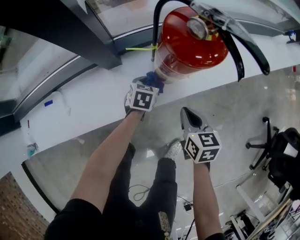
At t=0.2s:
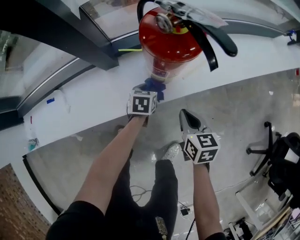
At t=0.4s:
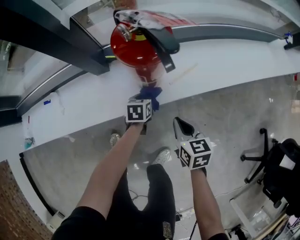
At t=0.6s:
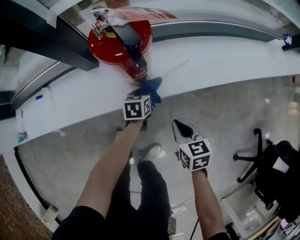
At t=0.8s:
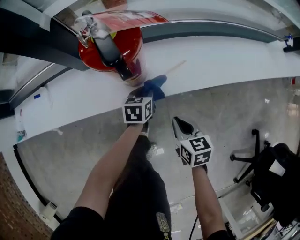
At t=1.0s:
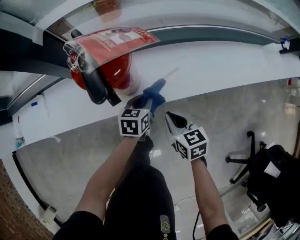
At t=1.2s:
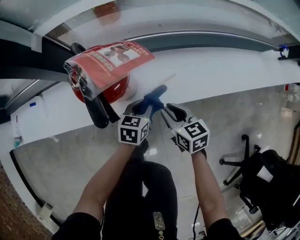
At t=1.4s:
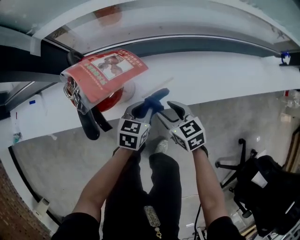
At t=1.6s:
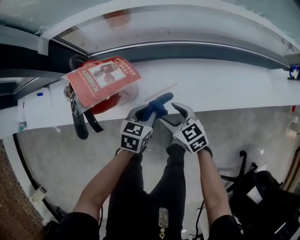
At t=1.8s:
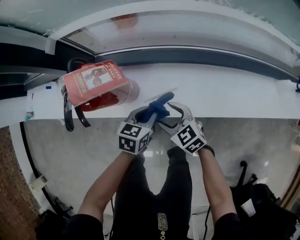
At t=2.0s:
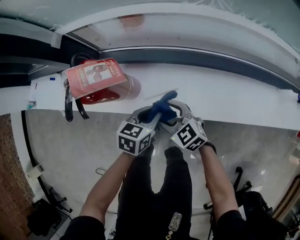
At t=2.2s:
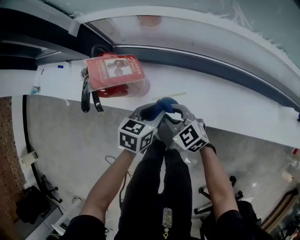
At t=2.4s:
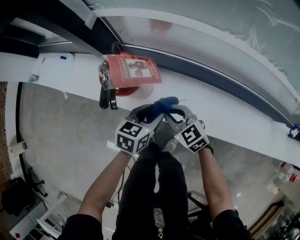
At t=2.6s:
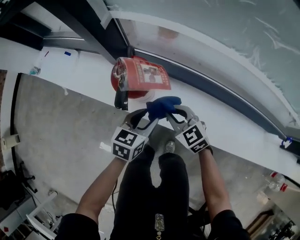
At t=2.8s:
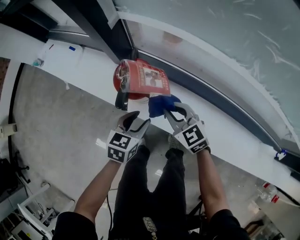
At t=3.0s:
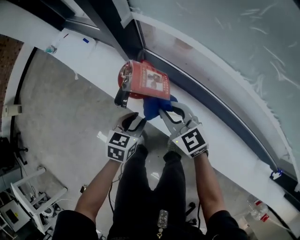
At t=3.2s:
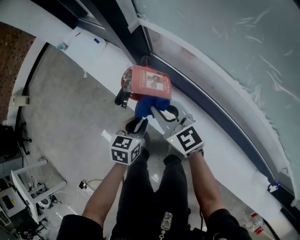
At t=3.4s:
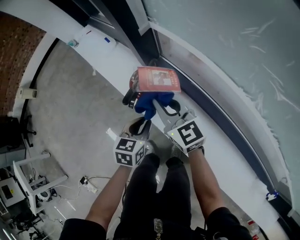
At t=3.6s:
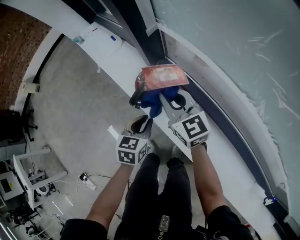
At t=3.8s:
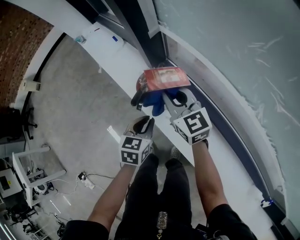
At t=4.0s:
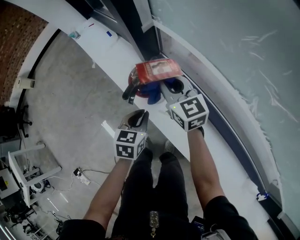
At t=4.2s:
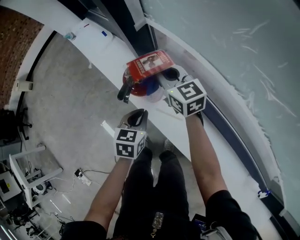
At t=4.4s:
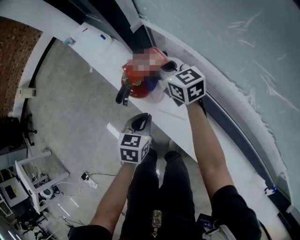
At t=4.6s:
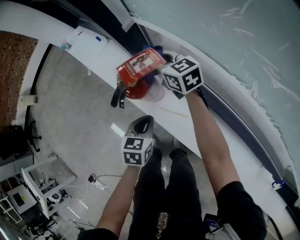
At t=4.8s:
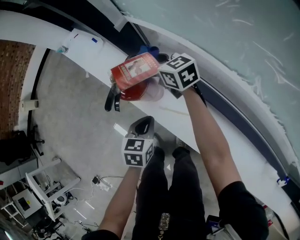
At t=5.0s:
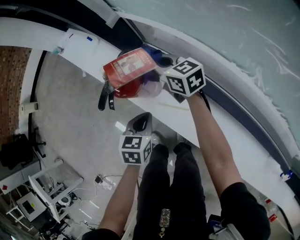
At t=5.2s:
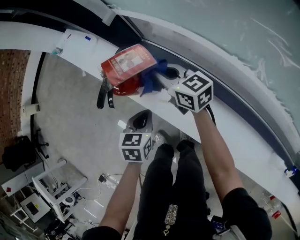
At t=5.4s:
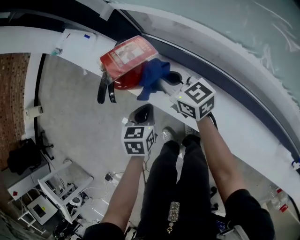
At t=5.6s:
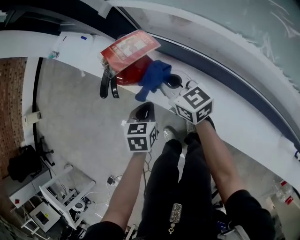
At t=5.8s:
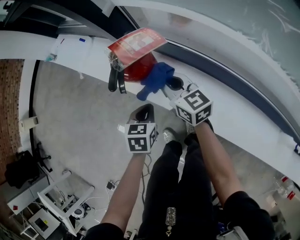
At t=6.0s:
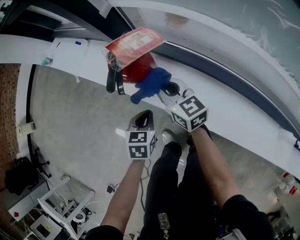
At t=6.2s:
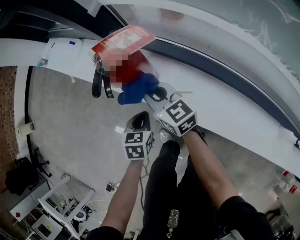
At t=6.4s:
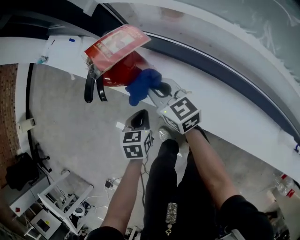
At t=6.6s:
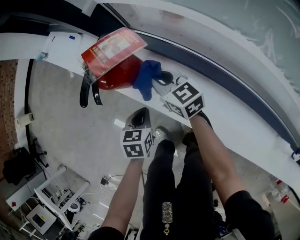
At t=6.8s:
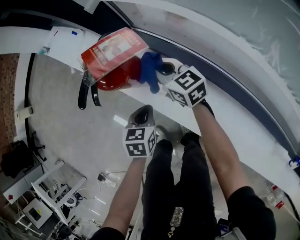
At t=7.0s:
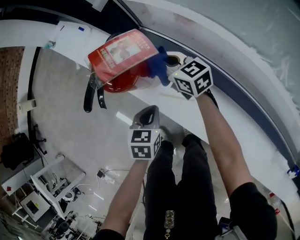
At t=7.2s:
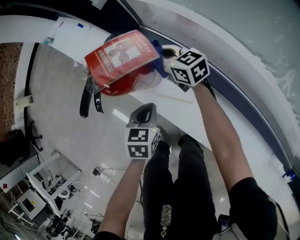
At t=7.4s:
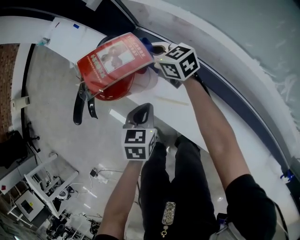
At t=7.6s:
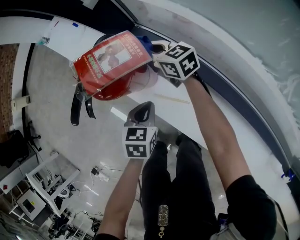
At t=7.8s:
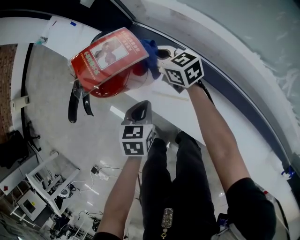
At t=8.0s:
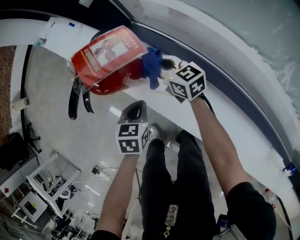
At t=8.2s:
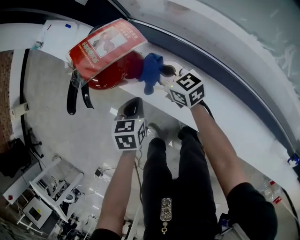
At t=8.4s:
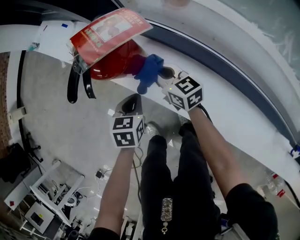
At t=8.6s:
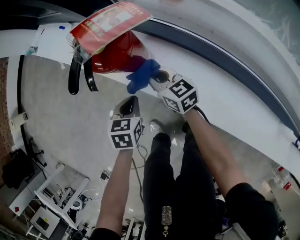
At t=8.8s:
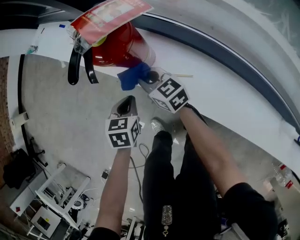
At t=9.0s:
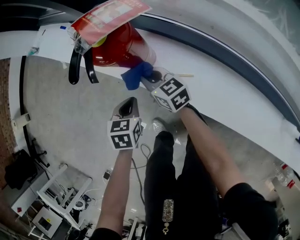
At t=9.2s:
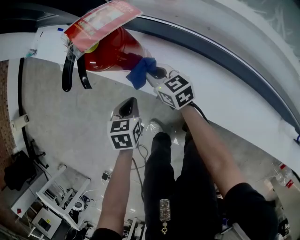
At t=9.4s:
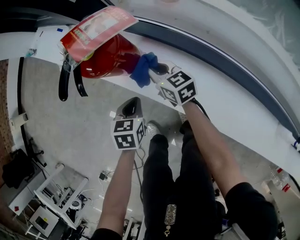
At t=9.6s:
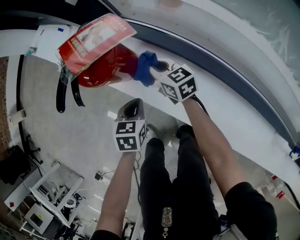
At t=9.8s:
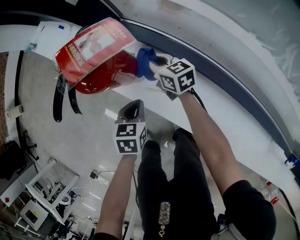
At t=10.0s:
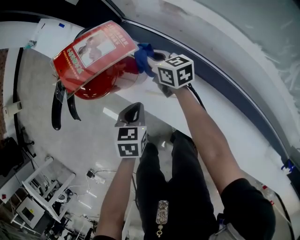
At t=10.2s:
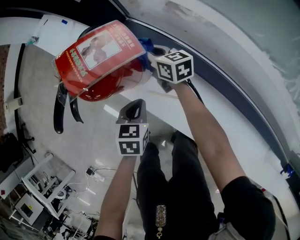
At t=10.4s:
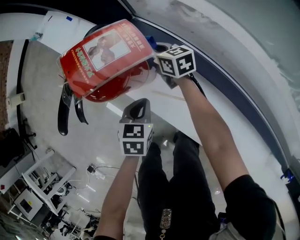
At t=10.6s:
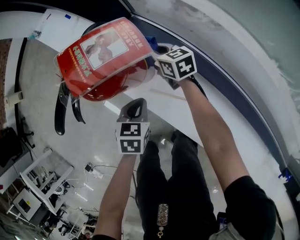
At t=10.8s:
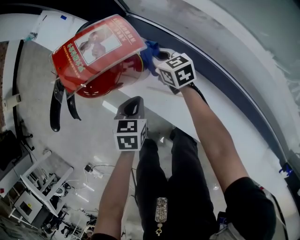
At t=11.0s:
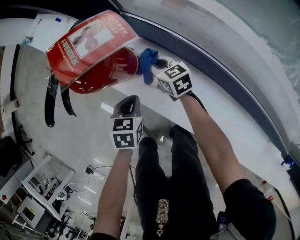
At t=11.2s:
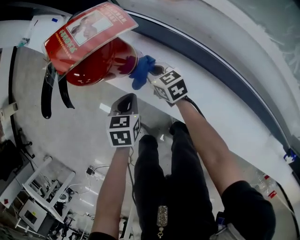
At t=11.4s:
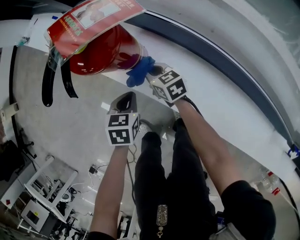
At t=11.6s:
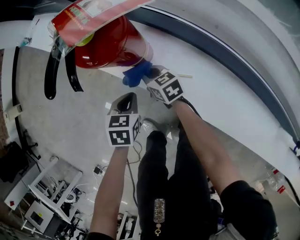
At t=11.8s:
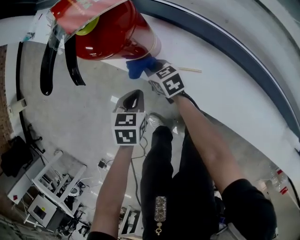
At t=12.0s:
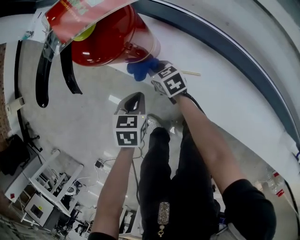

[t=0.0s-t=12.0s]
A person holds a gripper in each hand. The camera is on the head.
t=0.0s to t=1.6s: The left gripper shifts about 25 cm to the right and upward. The right gripper is displaced to the right and forward by roughly 20 cm, changes its angle by about 50 degrees, and opens up.
t=1.6s to t=3.0s: The right gripper travels upward by some 20 cm, swivels approximately 50 degrees, and closes, while the left gripper heads upward, covering about 10 cm, and turns by approximately 40 degrees.
t=3.0s to t=4.4s: The right gripper is displaced forward by approximately 15 cm. The left gripper goes some 5 cm upward, and closes its fingers.
t=4.4s to t=6.0s: The left gripper travels downward and to the left by some 10 cm; the right gripper heads backward and downward, covering approximately 15 cm.
t=6.0s to t=7.6s: The left gripper is displaced to the right by some 10 cm. Meanwhile the right gripper travels forward and downward by about 20 cm, and swivels some 20 degrees.
t=7.6s to t=9.0s: The left gripper is displaced to the left by approximately 10 cm. The right gripper moves backward and to the left, roughly 20 cm.
t=9.0s to t=10.4s: The right gripper shifts approximately 20 cm forward and to the right, while the left gripper moves to the right, some 10 cm.
t=10.4s to t=12.0s: The left gripper shifts about 10 cm to the left and backward, while the right gripper is displaced backward, to the left and downward by about 20 cm.

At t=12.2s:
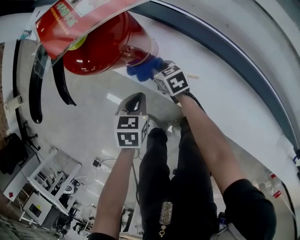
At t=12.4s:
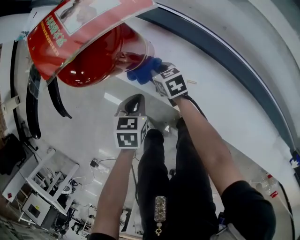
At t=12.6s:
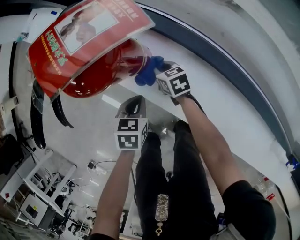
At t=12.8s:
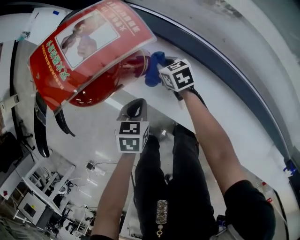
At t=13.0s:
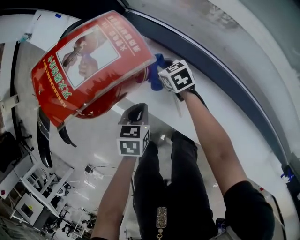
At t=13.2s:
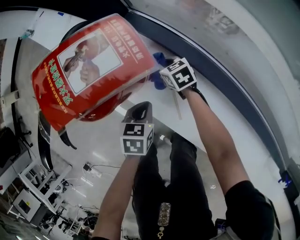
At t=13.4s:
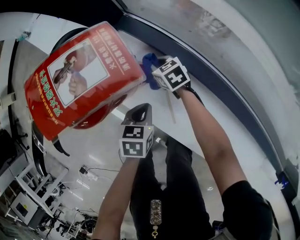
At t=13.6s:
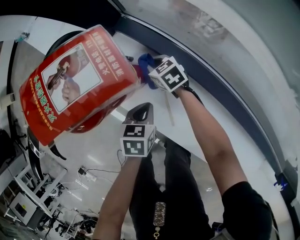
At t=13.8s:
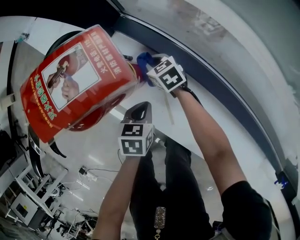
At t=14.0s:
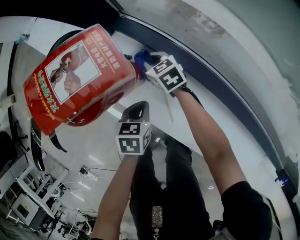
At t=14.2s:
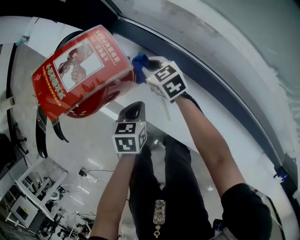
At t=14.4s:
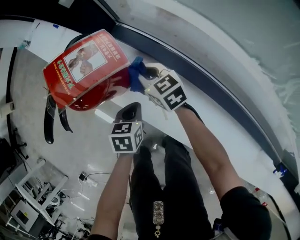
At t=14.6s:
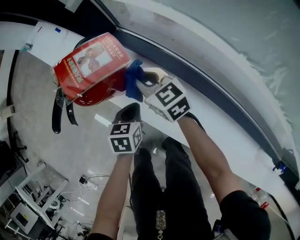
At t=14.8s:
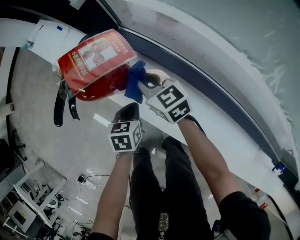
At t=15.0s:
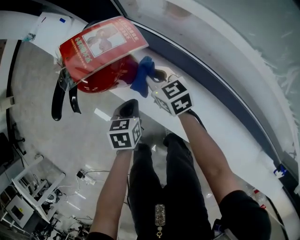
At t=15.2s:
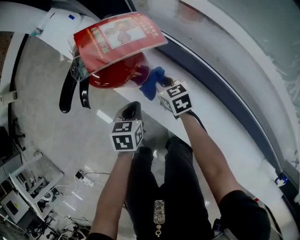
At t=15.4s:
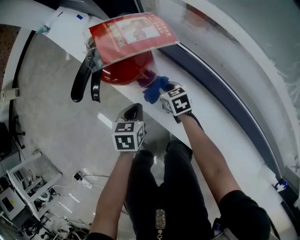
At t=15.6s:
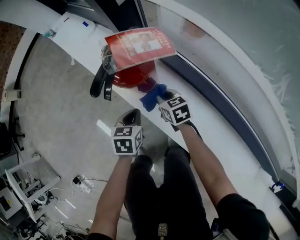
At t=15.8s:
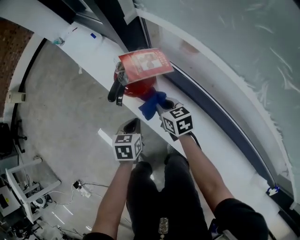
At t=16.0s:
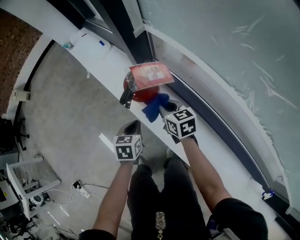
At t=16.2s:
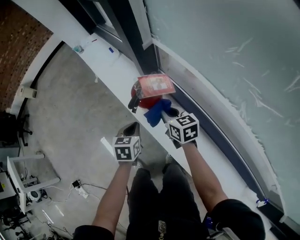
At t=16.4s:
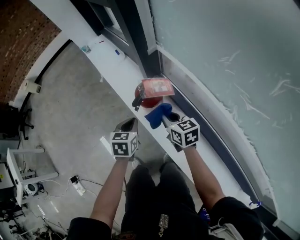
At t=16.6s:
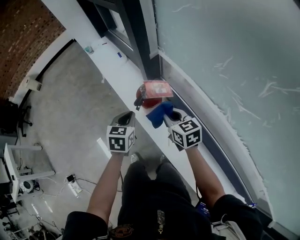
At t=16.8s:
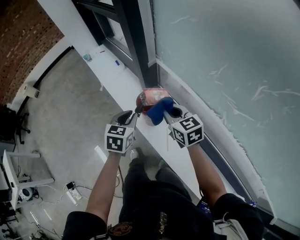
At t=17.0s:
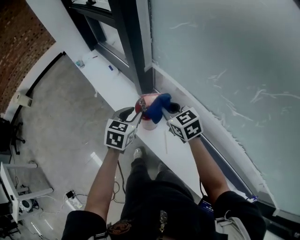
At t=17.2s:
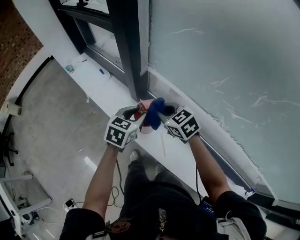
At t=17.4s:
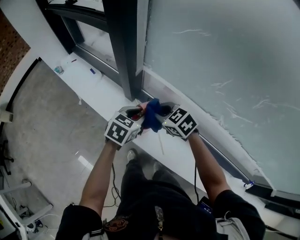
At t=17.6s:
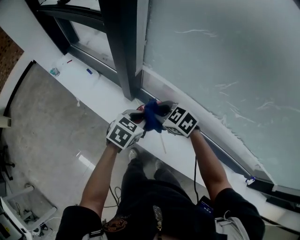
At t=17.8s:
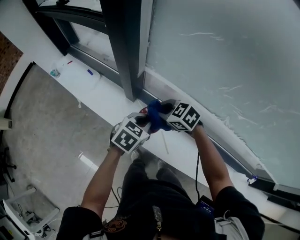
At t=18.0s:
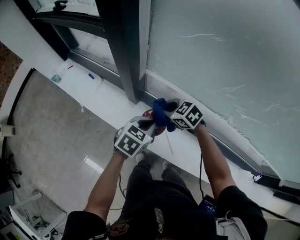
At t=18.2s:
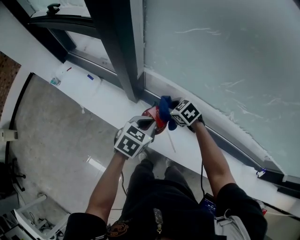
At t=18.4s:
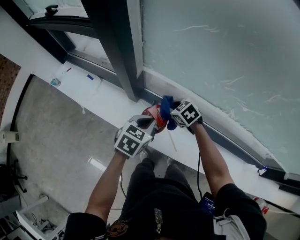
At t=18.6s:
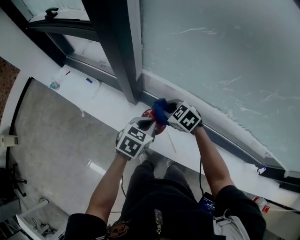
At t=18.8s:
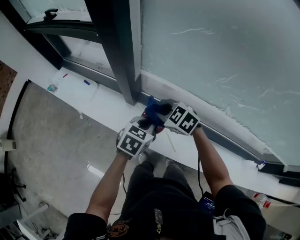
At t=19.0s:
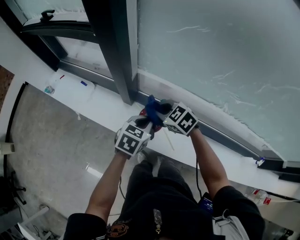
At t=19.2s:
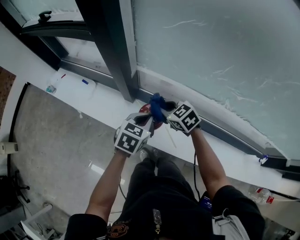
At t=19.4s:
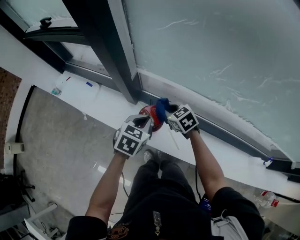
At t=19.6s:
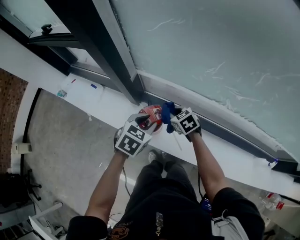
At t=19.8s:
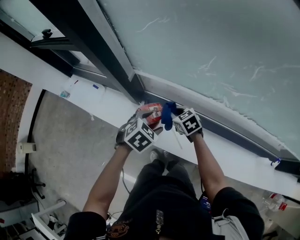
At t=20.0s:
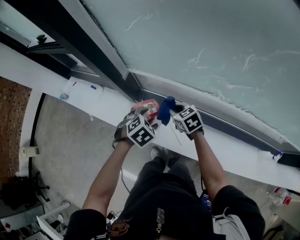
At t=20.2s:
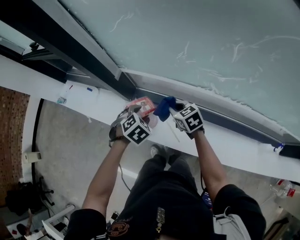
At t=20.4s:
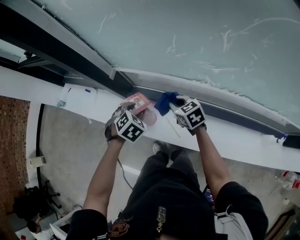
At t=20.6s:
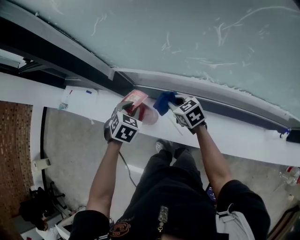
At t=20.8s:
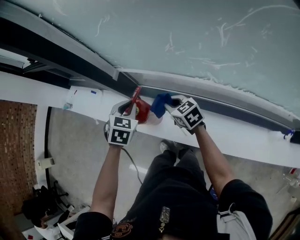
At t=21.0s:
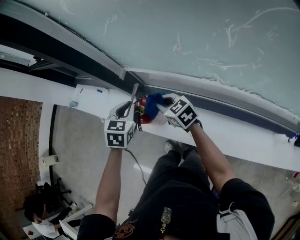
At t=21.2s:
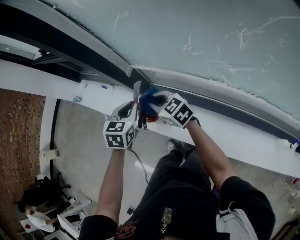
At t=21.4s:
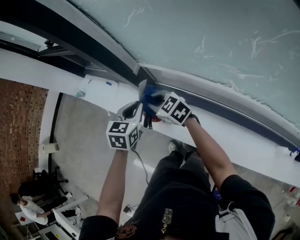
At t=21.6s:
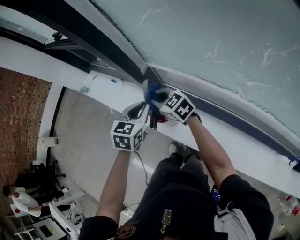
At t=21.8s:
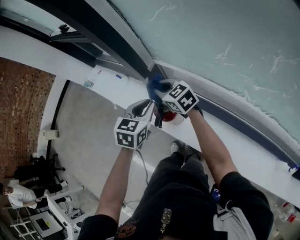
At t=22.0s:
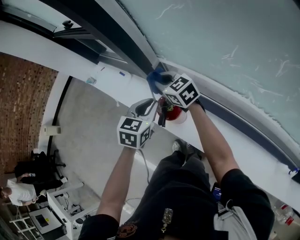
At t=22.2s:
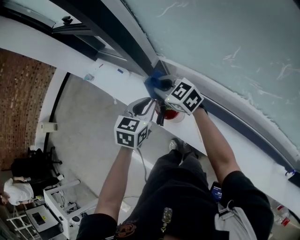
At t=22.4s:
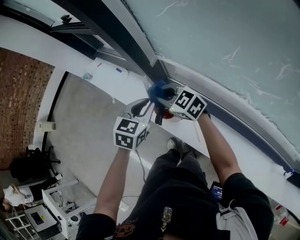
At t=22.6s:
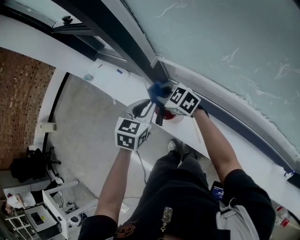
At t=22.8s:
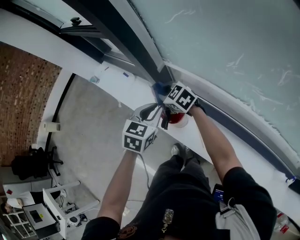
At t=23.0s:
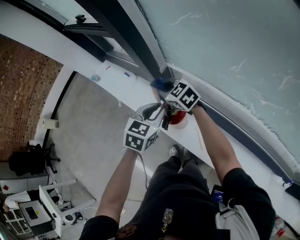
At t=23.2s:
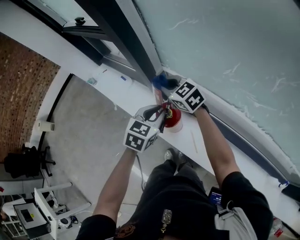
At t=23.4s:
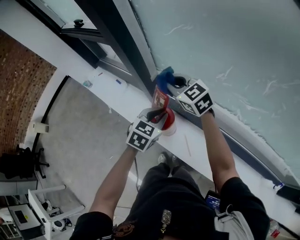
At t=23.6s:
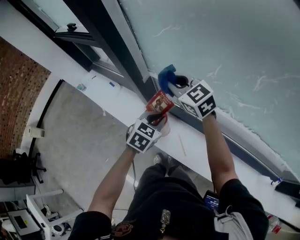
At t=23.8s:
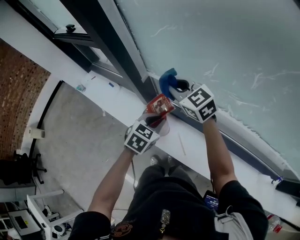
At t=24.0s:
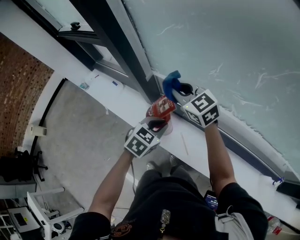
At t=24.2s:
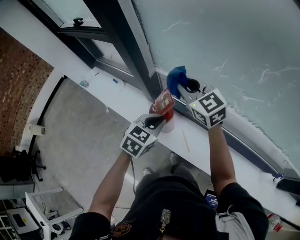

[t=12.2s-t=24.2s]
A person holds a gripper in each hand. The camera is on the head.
t=12.2s to t=13.8s: The left gripper goes roughly 10 cm to the right; the right gripper shifts some 15 cm forward and to the right.
t=13.8s to t=15.2s: The left gripper heads to the left, covering some 5 cm, while the right gripper is displaced backward by some 10 cm, and reaches approximately 20 cm upward, then returns.
t=15.2s to t=16.6s: The grippers both shift upward by roughly 30 cm.
t=16.6s to t=18.2s: The right gripper ends up roughly 15 cm from where it was, and rotates about 30 degrees, while the left gripper moves approximately 10 cm, swivels about 50 degrees, and opens and closes again.
t=18.2s to t=19.8s: The two grippers go some 5 cm to the right. The left gripper rotates approximately 30 degrees, and opens its fingers. Meanwhile the right gripper turns by roughly 20 degrees.
t=19.8s to t=21.2s: The right gripper goes approximately 15 cm upward and to the left, and swivels roughly 30 degrees. Meanwhile the left gripper shifts approximately 10 cm to the left, upward and forward, rotates roughly 40 degrees, and closes up.
t=21.2s to t=22.6s: The right gripper heads to the left, covering some 5 cm.
t=22.6s to t=24.2s: The right gripper is displaced upward and to the right by roughly 20 cm, and rotates some 30 degrees; the left gripper heads backward and to the right, covering about 10 cm.
